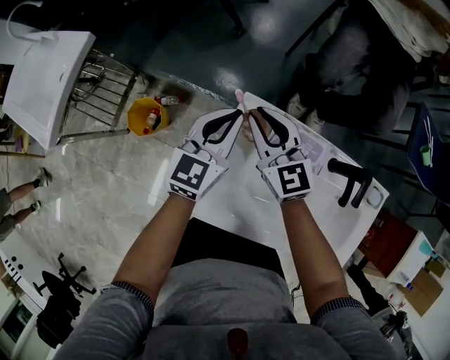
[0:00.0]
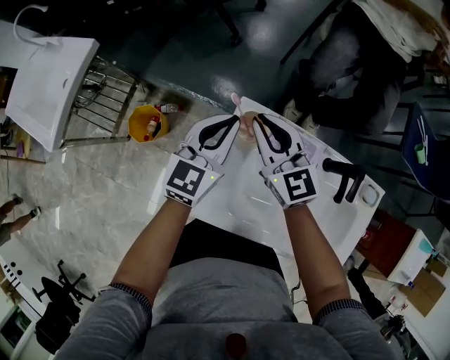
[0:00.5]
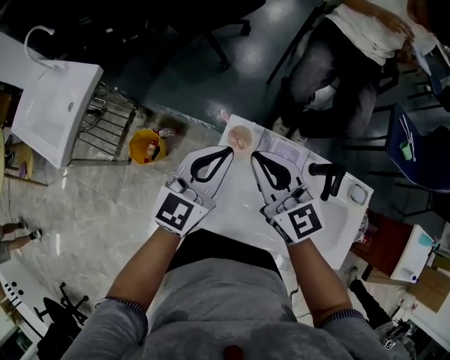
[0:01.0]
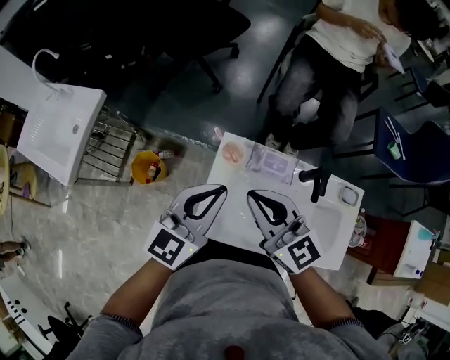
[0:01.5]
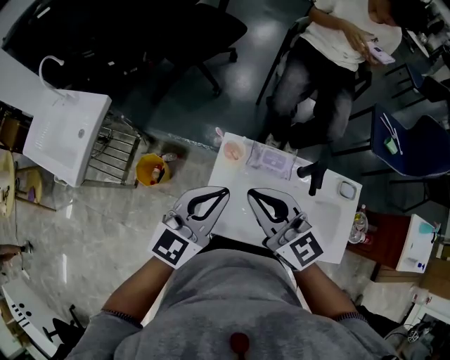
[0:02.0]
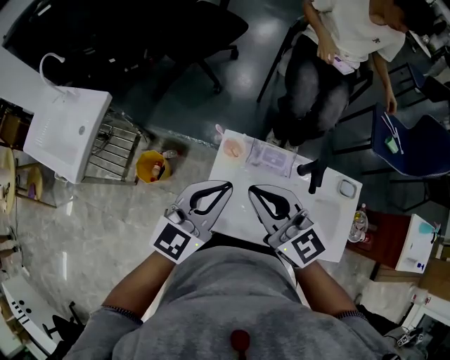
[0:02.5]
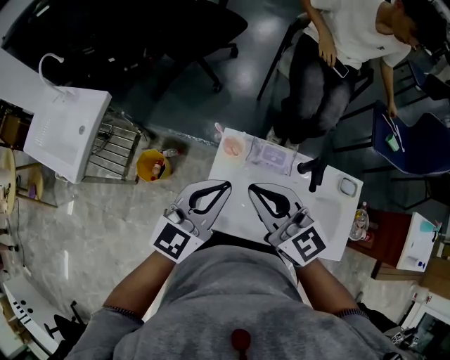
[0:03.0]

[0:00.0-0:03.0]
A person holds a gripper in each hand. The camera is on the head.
0:00.0 to 0:01.5: The two grippers go roughly 25 cm upward and backward.
0:01.5 to 0:03.0: The grippers move only a little.

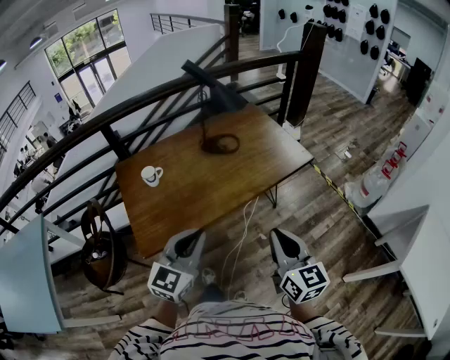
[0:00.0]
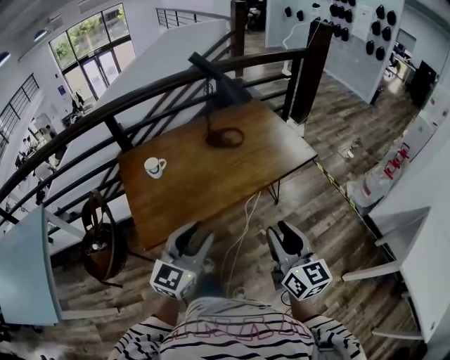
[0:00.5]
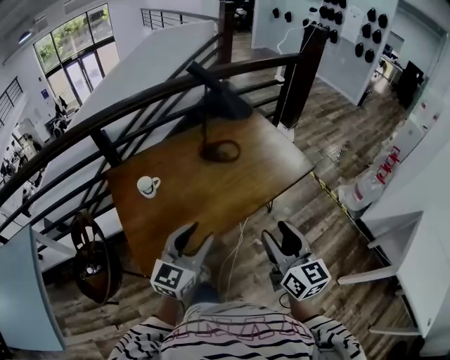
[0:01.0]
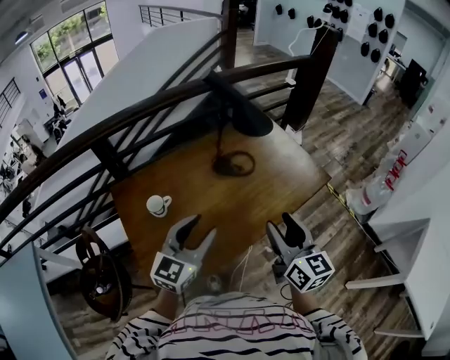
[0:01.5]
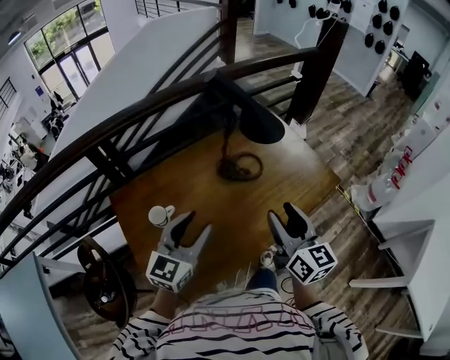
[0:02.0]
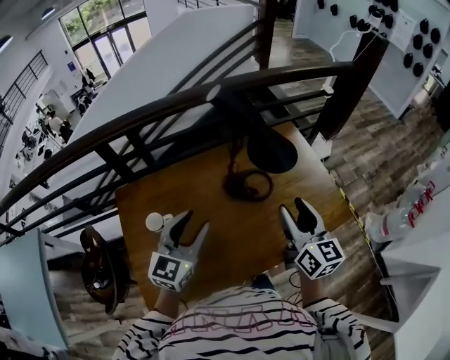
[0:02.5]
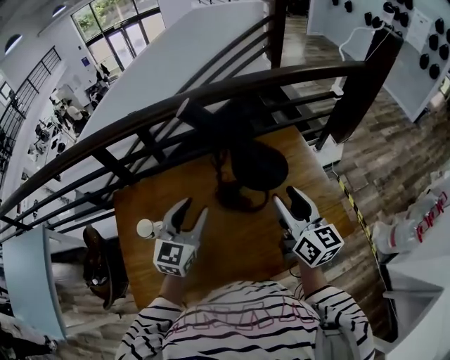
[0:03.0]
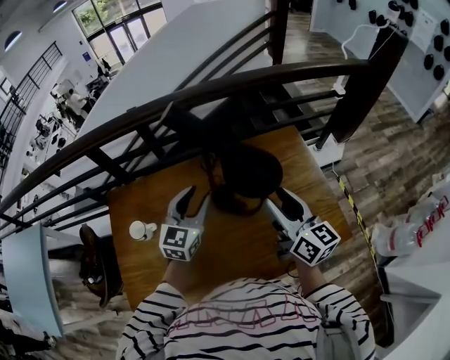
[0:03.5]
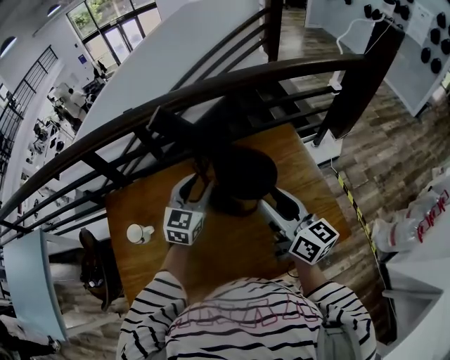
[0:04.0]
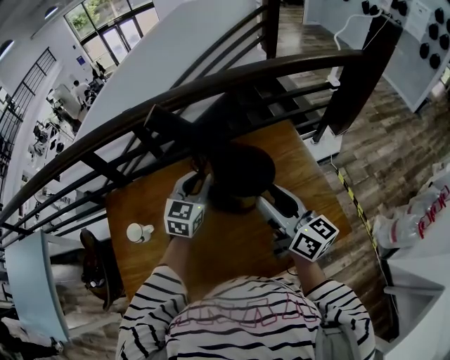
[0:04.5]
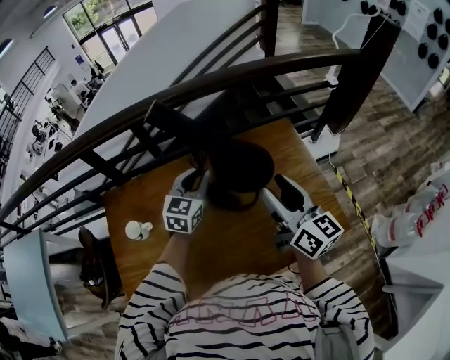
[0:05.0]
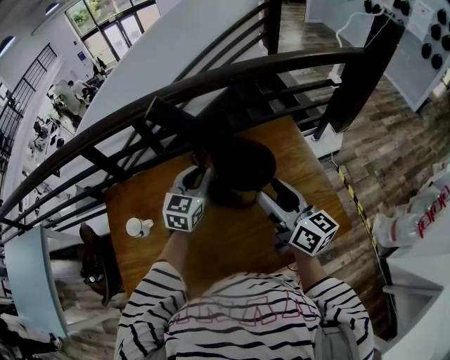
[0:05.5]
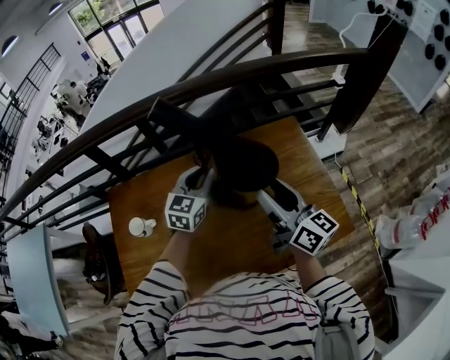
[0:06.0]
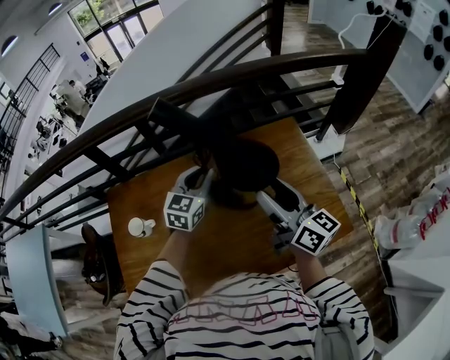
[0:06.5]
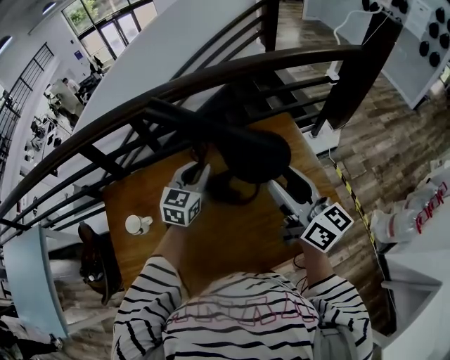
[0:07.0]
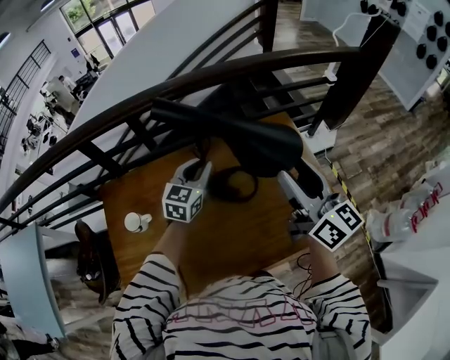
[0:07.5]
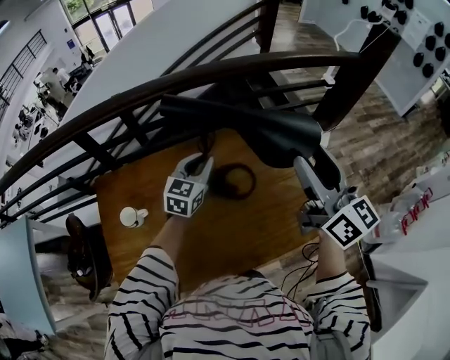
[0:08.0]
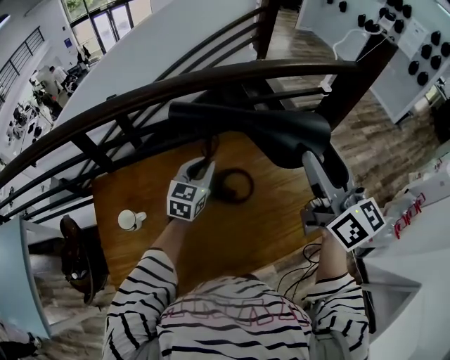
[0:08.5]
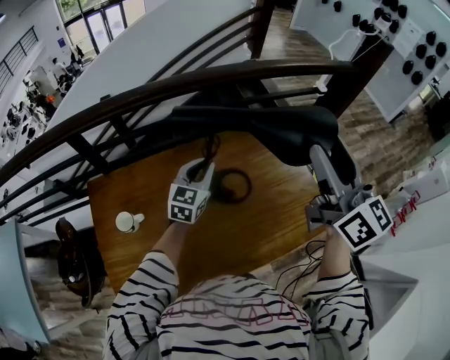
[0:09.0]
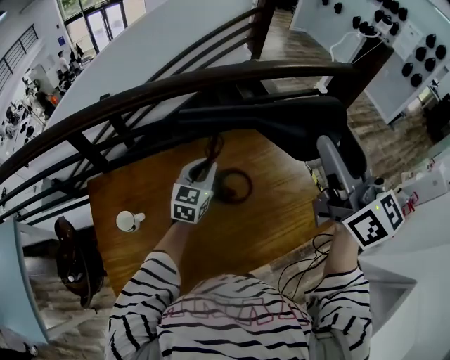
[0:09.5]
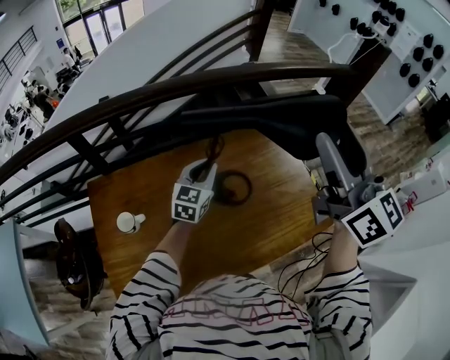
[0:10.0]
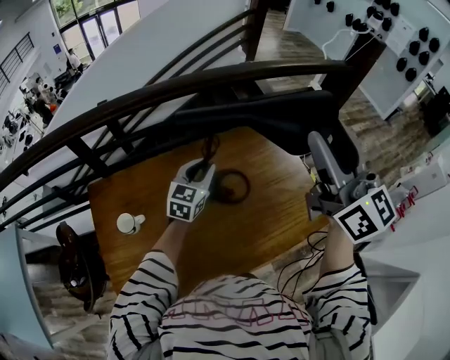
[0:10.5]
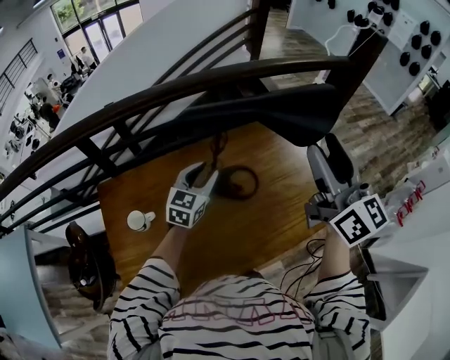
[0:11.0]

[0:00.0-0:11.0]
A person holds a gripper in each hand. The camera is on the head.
0:00.0 to 0:02.0: The two grippers go roughly 35 cm forward and to the left. The right gripper opens, while the left gripper opens.
0:02.0 to 0:03.5: Both grippers travel together forward and to the right, roughly 30 cm. The right gripper changes its angle by some 30 degrees, while the left gripper turns by some 20 degrees.
0:03.5 to 0:05.5: The left gripper shifts some 5 cm forward, and closes.
0:05.5 to 0:07.5: The right gripper moves upward, about 10 cm.
0:07.5 to 0:09.0: The right gripper shifts roughly 10 cm upward.
0:09.0 to 0:11.0: The left gripper ends up some 5 cm from where it was, and opens.

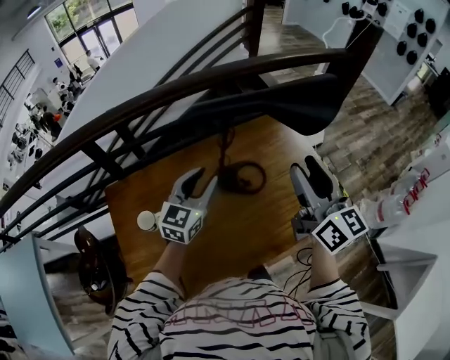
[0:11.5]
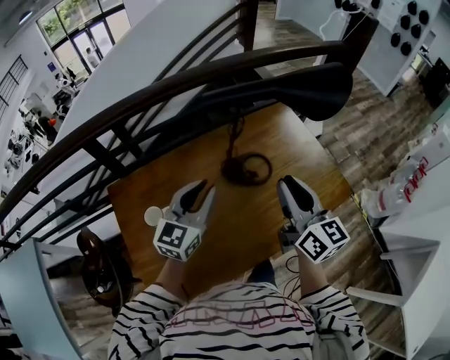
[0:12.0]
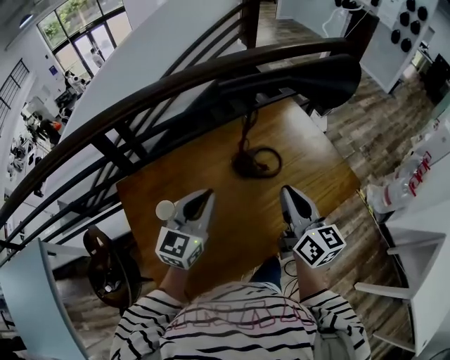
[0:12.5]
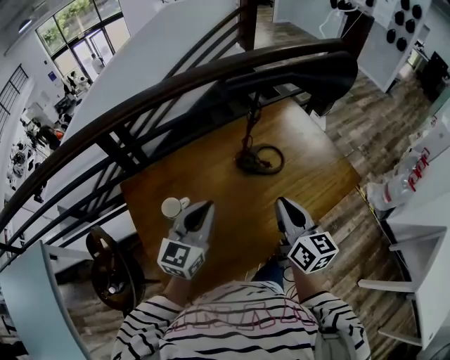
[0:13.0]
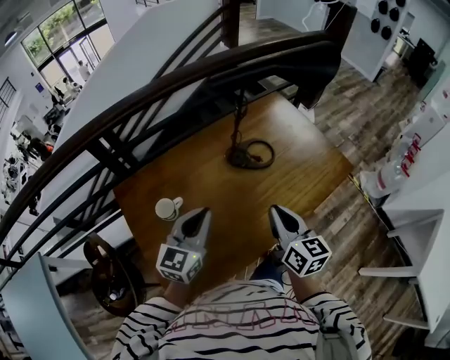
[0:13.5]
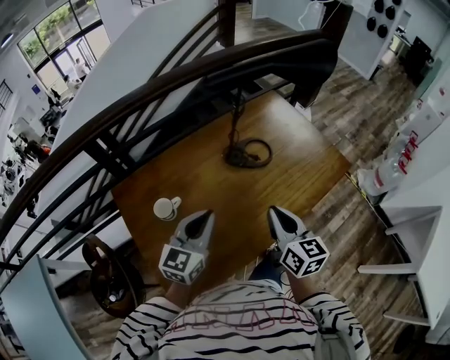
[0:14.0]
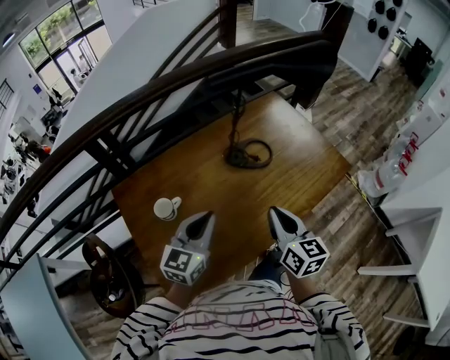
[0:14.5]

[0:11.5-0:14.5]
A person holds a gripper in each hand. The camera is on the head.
0:11.5 to 0:13.0: The left gripper is displaced backward and to the left by some 20 cm, and closes, while the right gripper heads downward, backward and to the left, covering about 25 cm, and closes its fingers.
0:13.0 to 0:14.5: The left gripper changes place by some 5 cm. The right gripper shifts by some 5 cm.

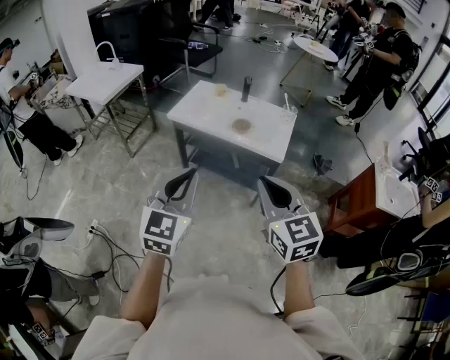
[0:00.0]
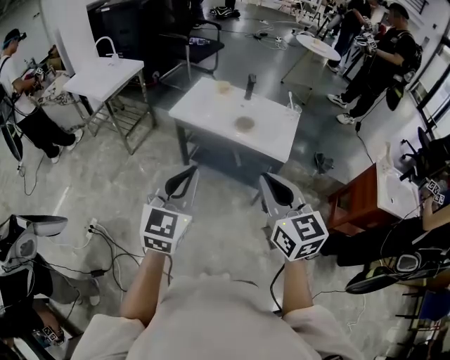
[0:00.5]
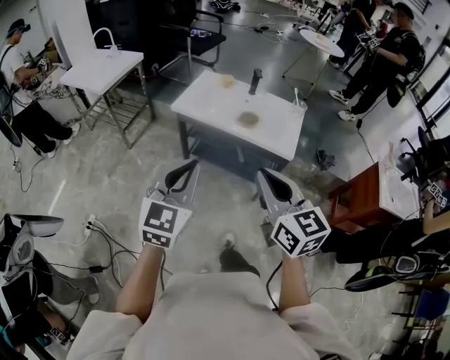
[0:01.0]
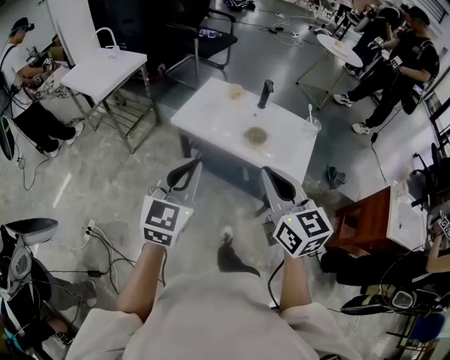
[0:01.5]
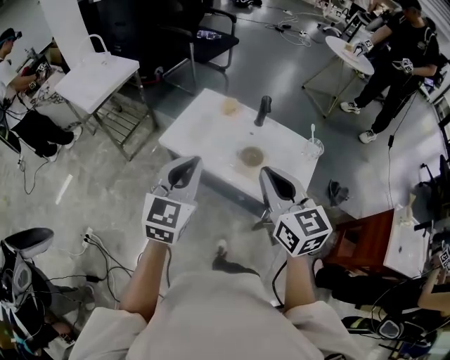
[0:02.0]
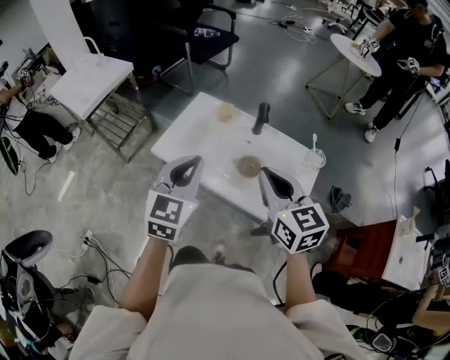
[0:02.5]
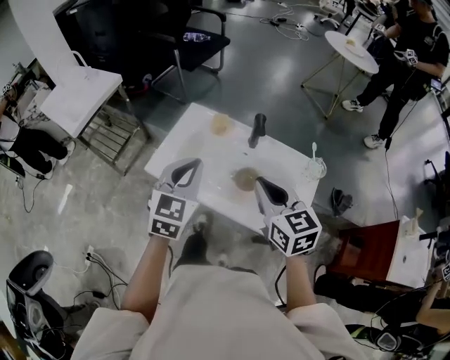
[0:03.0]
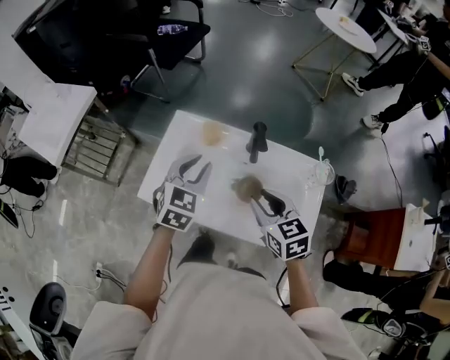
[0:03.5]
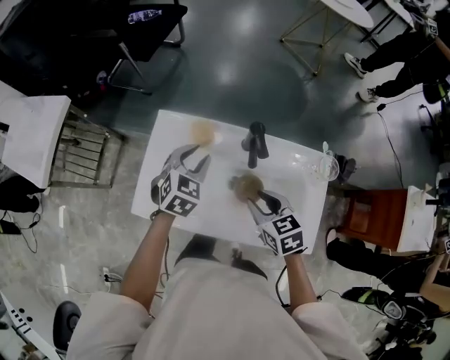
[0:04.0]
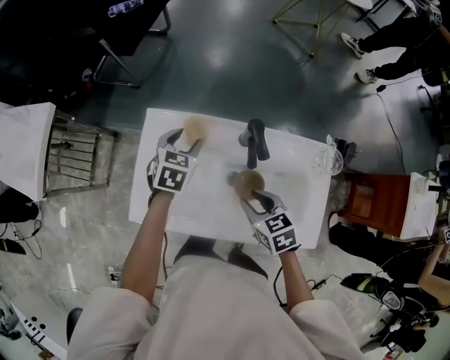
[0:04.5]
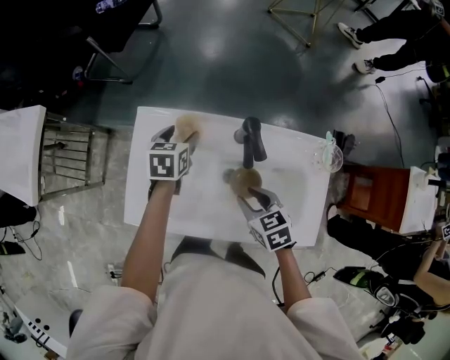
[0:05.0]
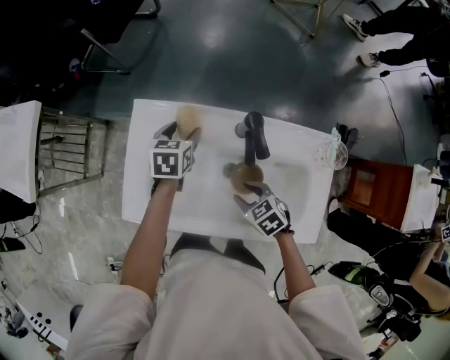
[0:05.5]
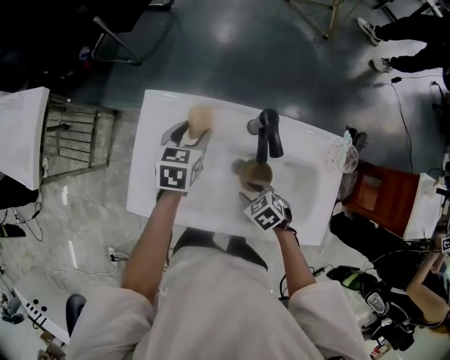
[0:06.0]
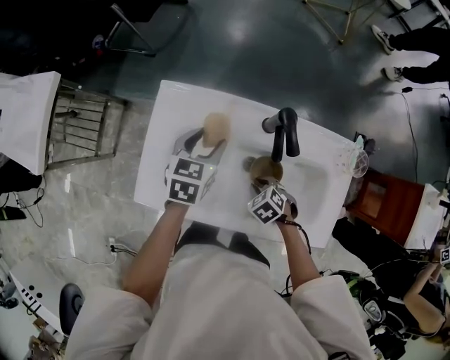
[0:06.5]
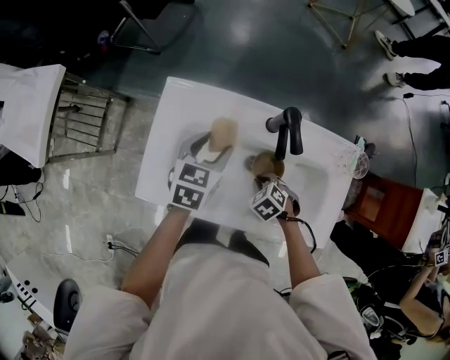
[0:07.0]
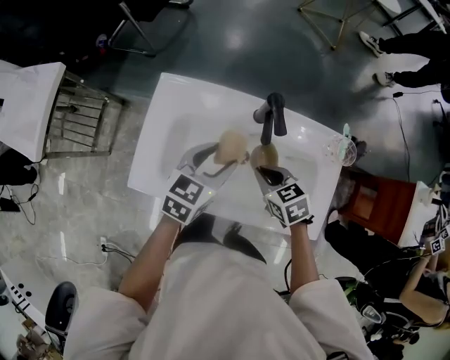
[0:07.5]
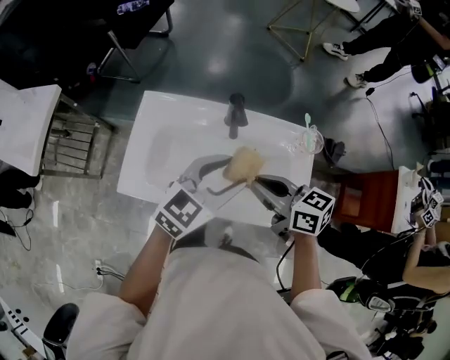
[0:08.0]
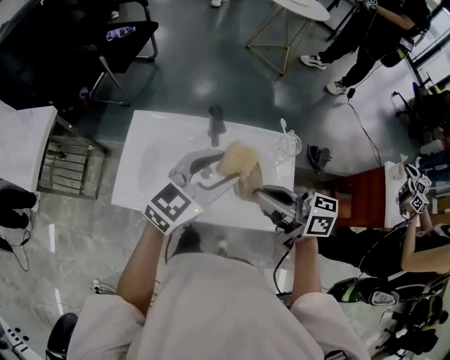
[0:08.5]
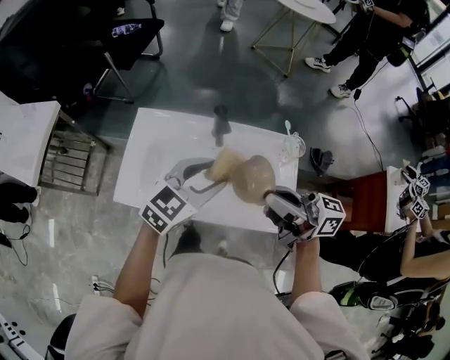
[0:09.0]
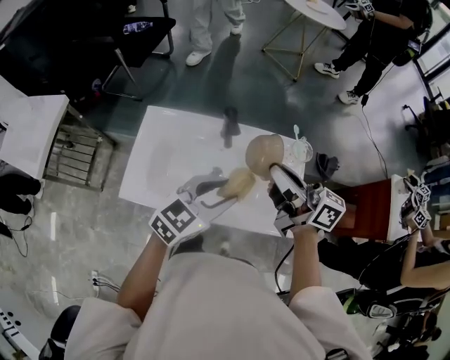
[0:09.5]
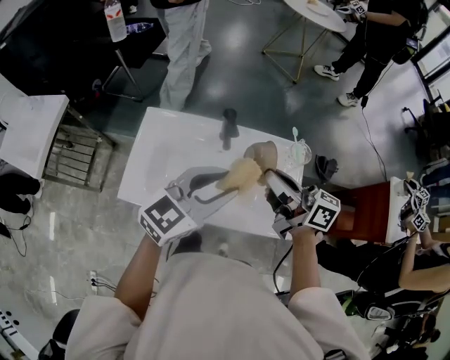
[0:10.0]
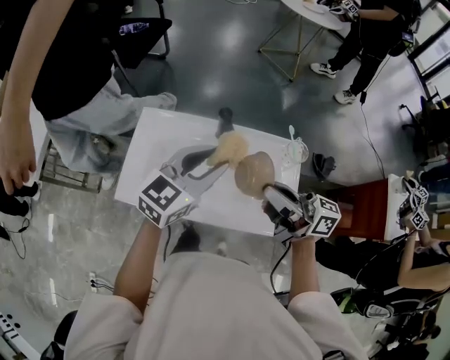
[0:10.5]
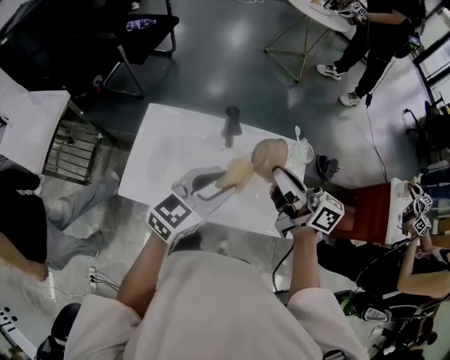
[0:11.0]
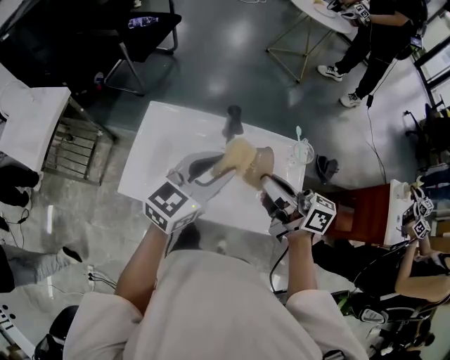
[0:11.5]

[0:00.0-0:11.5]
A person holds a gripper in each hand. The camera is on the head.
0:00.0 to 0:02.0: The two grippers travel together, forward, about 40 cm.
0:02.0 to 0:04.0: The grippers both shift forward and downward by approximately 50 cm. The left gripper tilts its fingers roughly 30 degrees downward, and opens up. The right gripper angles its fingers downward, by some 30 degrees, and opens up.
0:04.0 to 0:06.0: The right gripper moves downward, approximately 20 cm, and changes its angle by approximately 30 degrees; the left gripper moves downward and forward, approximately 10 cm, and changes its angle by approximately 30 degrees.
0:06.0 to 0:07.5: The left gripper is displaced backward and upward by some 15 cm, and changes its angle by some 20 degrees, while the right gripper moves upward, about 10 cm, and closes its fingers.
0:07.5 to 0:09.5: The right gripper heads upward, covering roughly 30 cm, and angles its fingers upward, by some 60 degrees. The left gripper heads backward, upward and to the right, covering roughly 20 cm, and turns by about 30 degrees.
0:09.5 to 0:11.5: The left gripper travels forward by about 5 cm.
